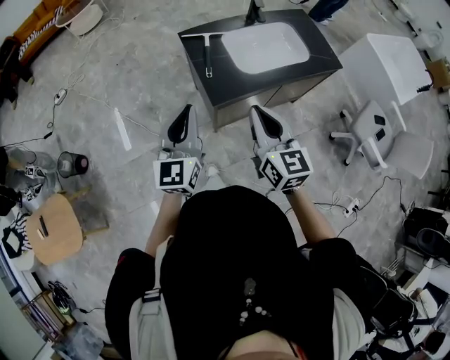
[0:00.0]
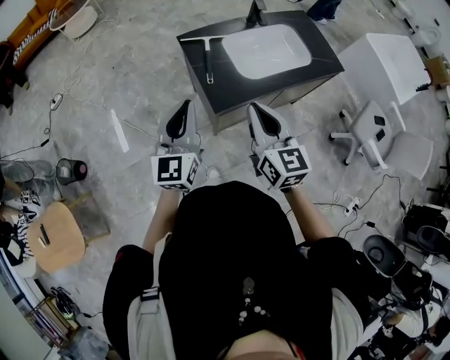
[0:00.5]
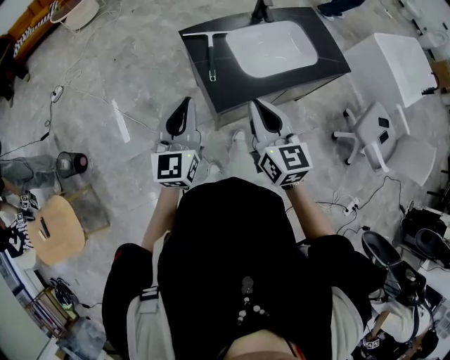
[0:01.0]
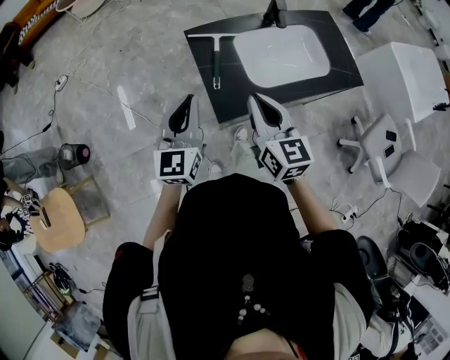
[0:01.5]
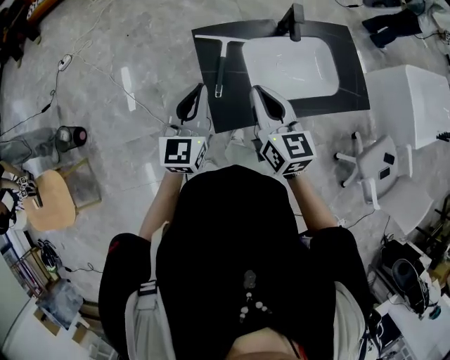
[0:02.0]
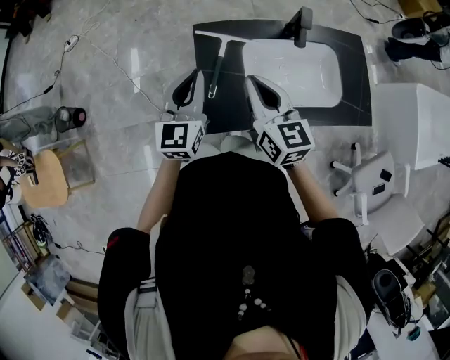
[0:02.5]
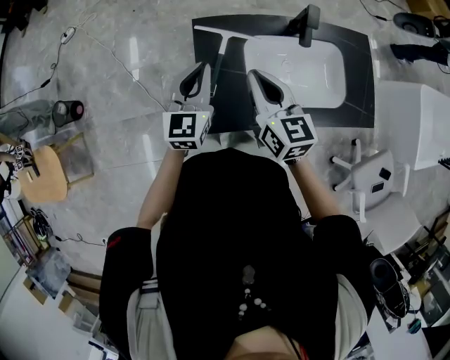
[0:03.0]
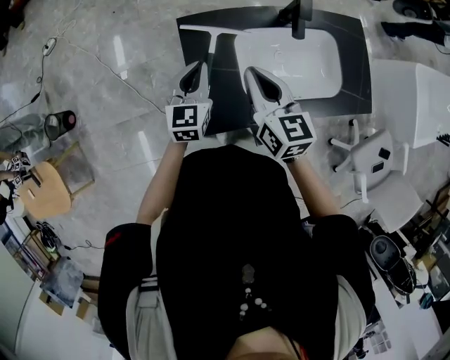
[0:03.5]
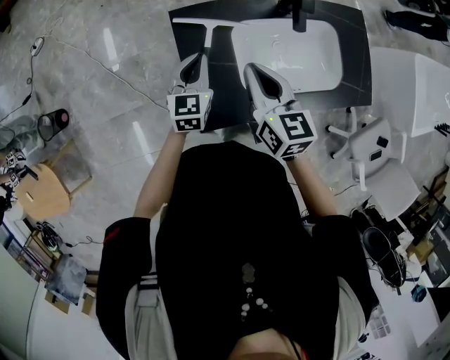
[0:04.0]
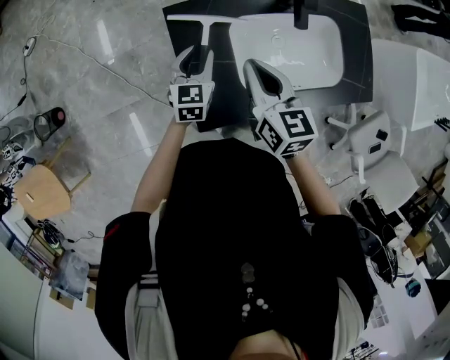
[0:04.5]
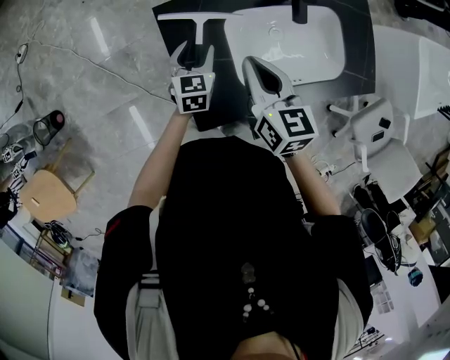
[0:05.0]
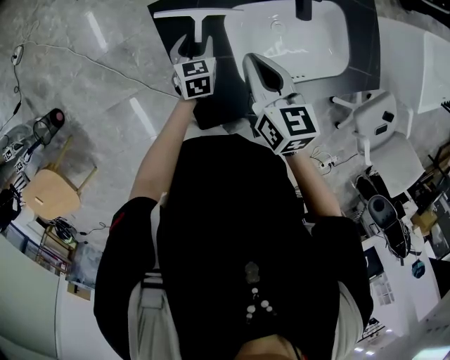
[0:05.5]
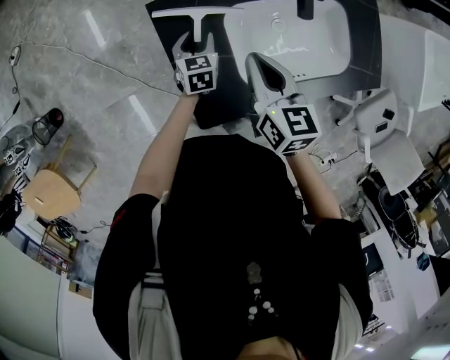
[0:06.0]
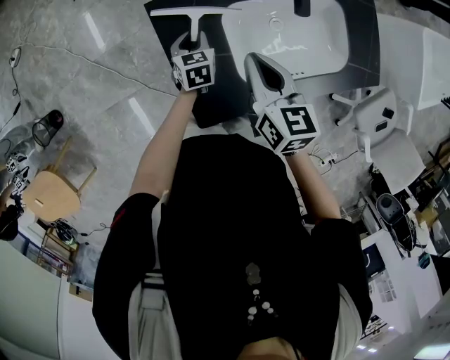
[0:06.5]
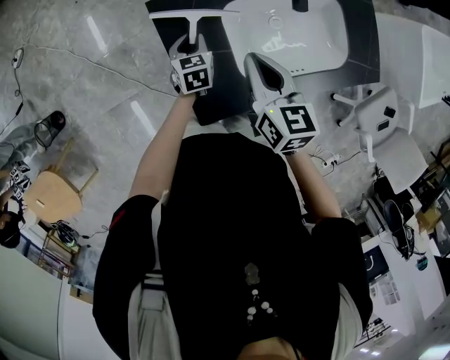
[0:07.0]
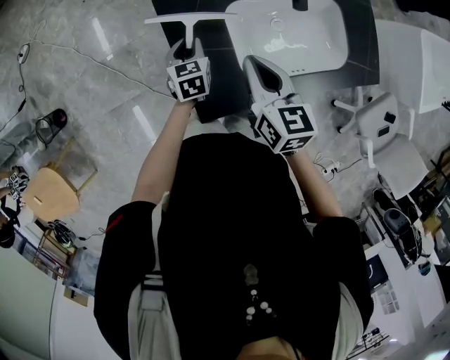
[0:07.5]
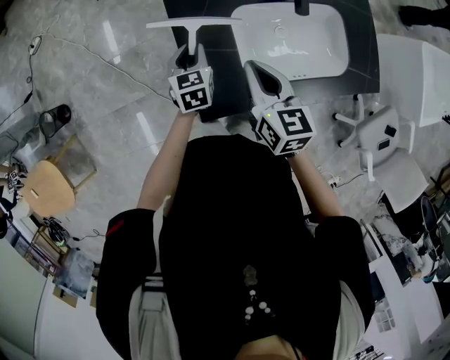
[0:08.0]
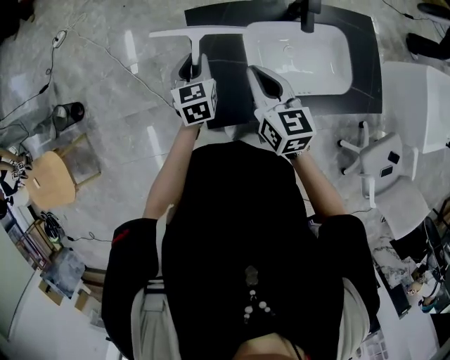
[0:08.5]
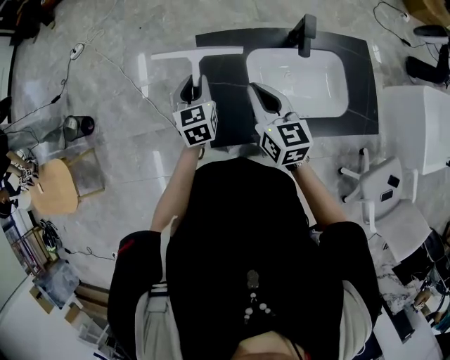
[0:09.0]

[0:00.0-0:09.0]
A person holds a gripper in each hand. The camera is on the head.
0:00.0 to 0:02.0: Both grippers move forward, approximately 25 cm.
0:02.0 to 0:04.5: The right gripper heads forward and downward, covering approximately 15 cm; the left gripper moves downward and forward, approximately 25 cm, rotates roughly 30 degrees, and opens up.
0:04.5 to 0:07.0: The left gripper shifts approximately 10 cm downward.
0:07.0 to 0:09.0: The left gripper moves upward, about 20 cm, and rotates roughly 30 degrees; the right gripper shifts about 5 cm upward, and rotates approximately 20 degrees.

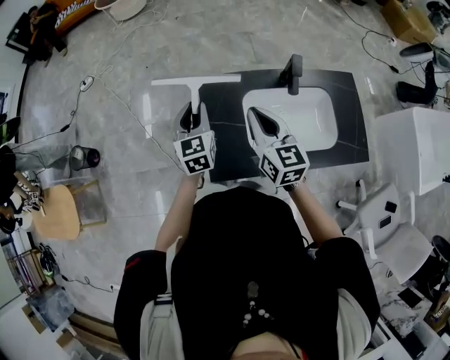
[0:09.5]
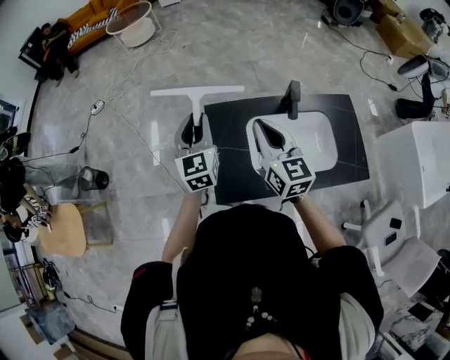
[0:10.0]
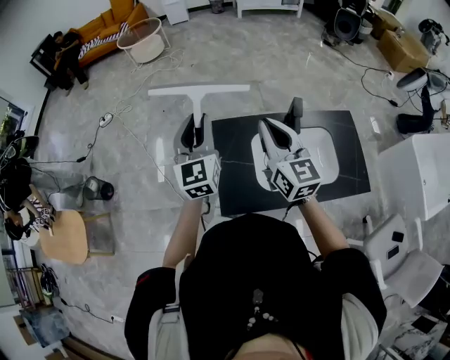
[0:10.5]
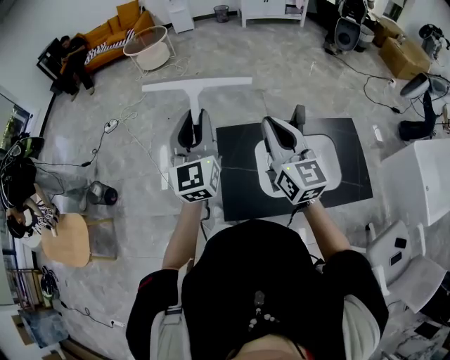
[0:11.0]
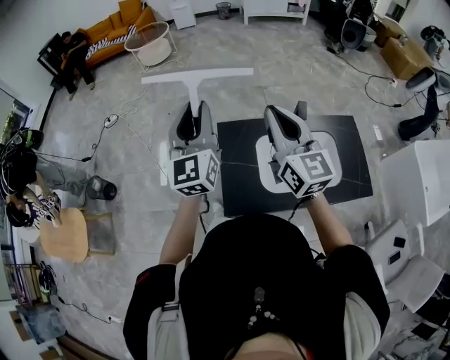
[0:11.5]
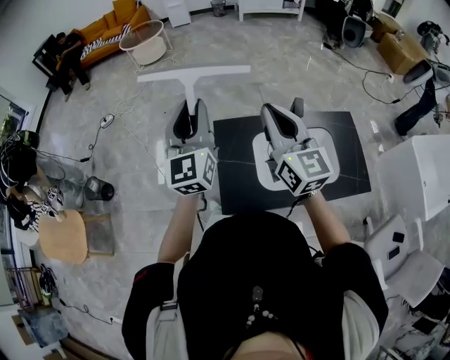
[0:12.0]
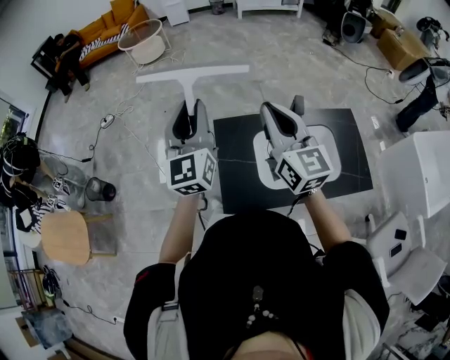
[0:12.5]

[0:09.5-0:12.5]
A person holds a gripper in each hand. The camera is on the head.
0:09.5 to 0:11.0: Both grippers move upward, roughly 20 cm. The left gripper turns by some 30 degrees.
0:11.0 to 0:12.5: The grippers make only small movements.

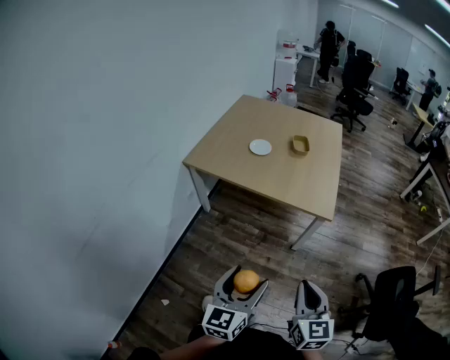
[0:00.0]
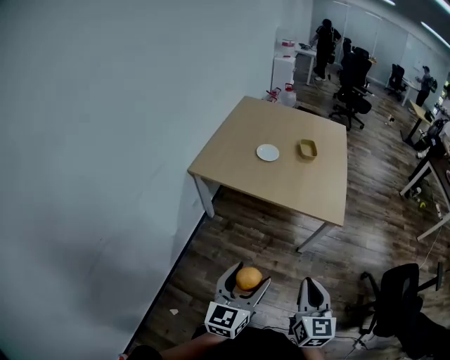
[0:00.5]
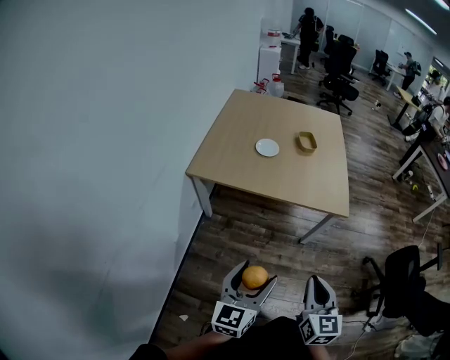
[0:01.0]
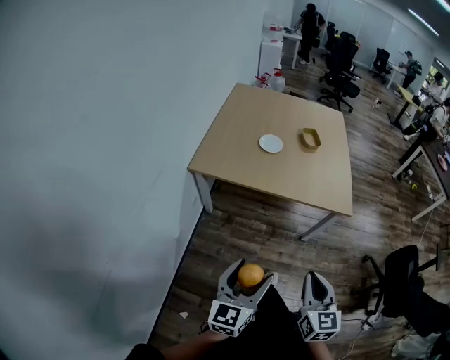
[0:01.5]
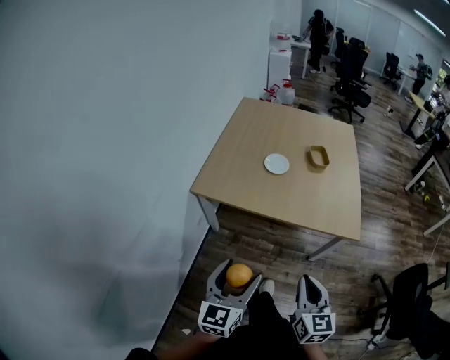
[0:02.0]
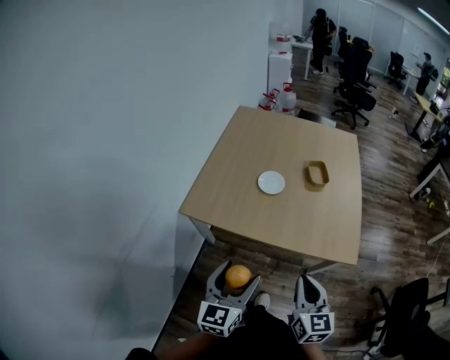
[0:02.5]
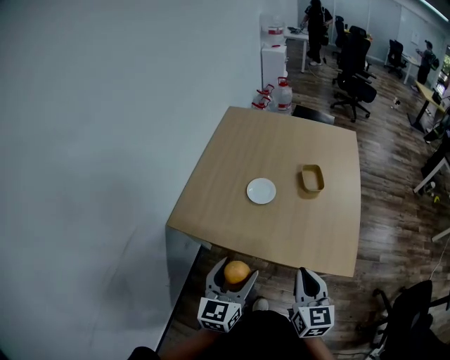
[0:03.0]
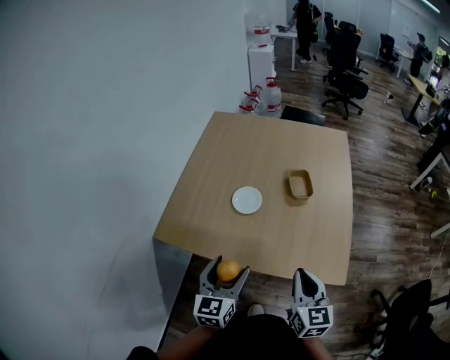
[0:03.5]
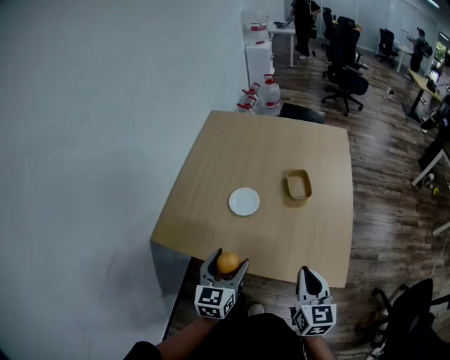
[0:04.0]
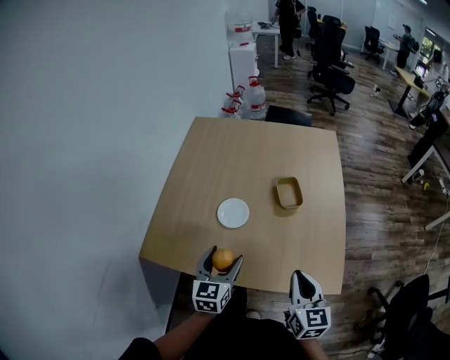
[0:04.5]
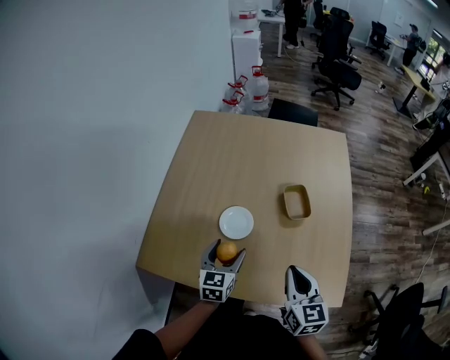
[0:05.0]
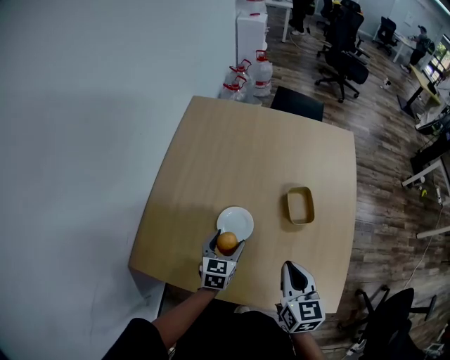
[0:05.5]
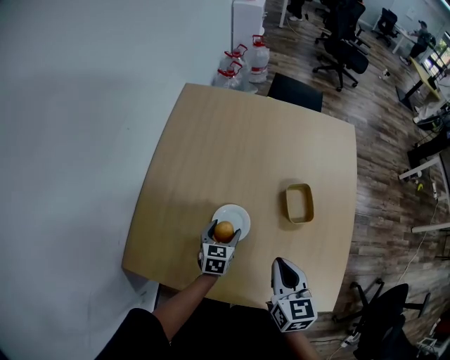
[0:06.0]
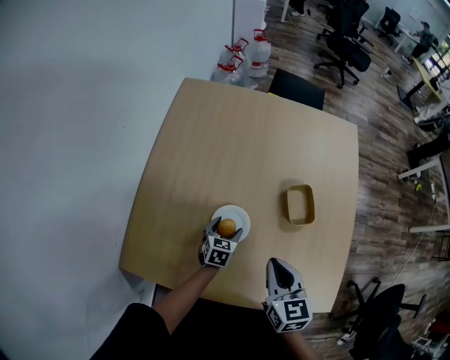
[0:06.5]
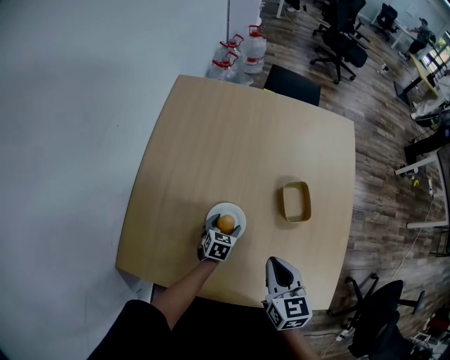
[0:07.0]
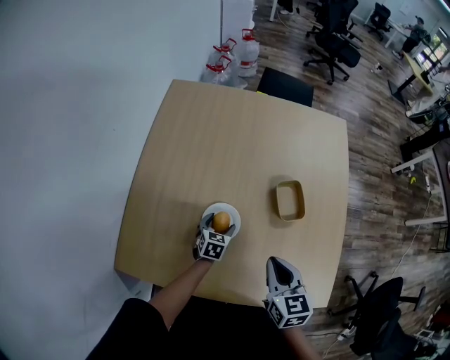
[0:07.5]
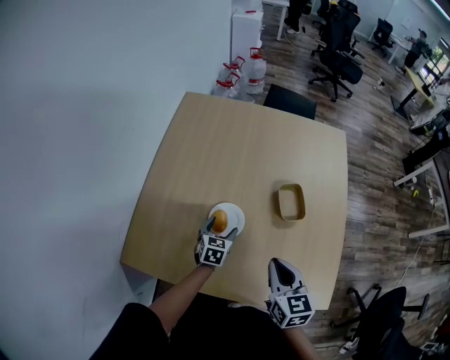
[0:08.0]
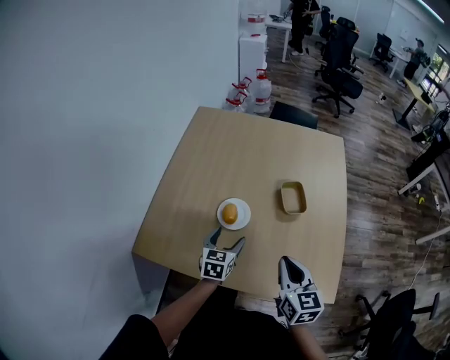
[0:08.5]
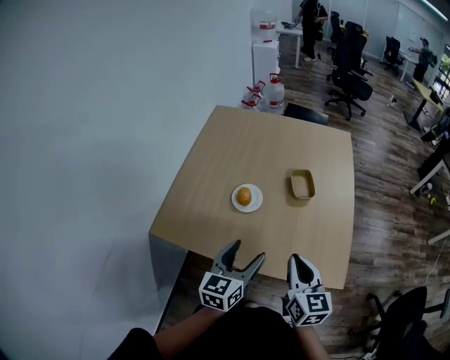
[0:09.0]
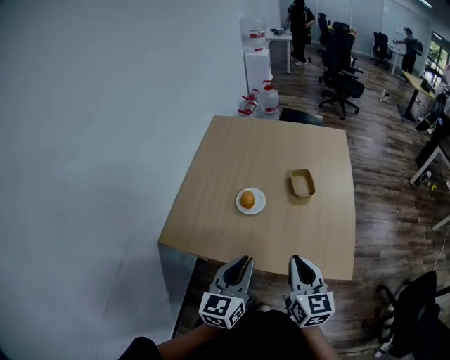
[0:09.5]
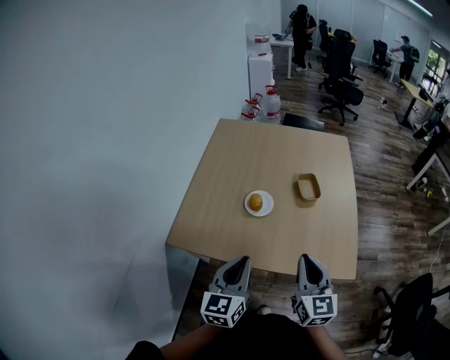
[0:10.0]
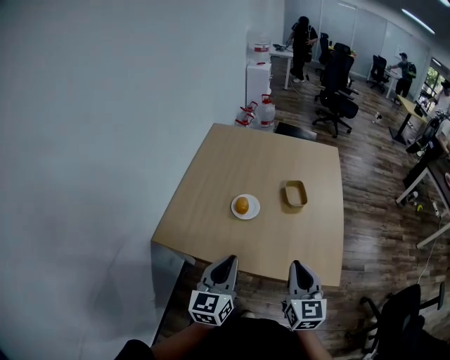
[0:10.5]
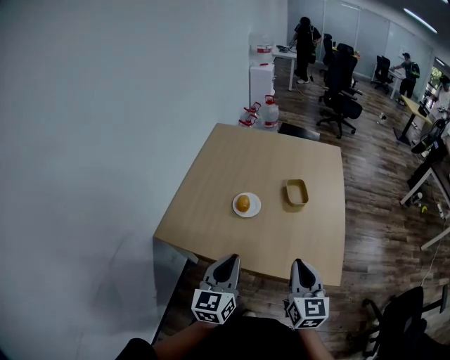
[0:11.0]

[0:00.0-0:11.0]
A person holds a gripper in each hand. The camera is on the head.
0:00.0 to 0:02.0: Both grippers move to the left and forward, about 25 cm.
0:02.0 to 0:03.5: The left gripper shifts roughly 30 cm forward. Meanwhile the right gripper heads forward and to the right, covering roughly 30 cm.
0:03.5 to 0:05.5: The right gripper goes some 20 cm forward; the left gripper goes roughly 30 cm forward and downward.
0:05.5 to 0:07.5: The left gripper goes roughly 15 cm downward and forward.
0:07.5 to 0:09.0: The right gripper heads backward and upward, covering approximately 20 cm. The left gripper goes approximately 40 cm upward and backward, and points its fingers approximately 30 degrees further upward.
0:09.0 to 0:11.0: The grippers both shift backward by approximately 5 cm. The left gripper closes up.

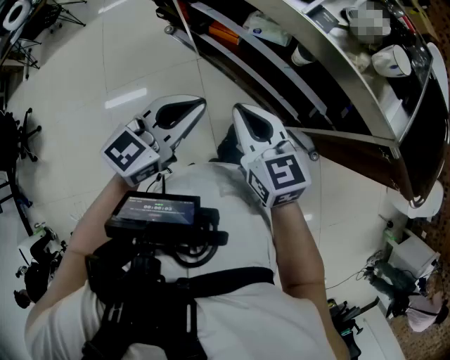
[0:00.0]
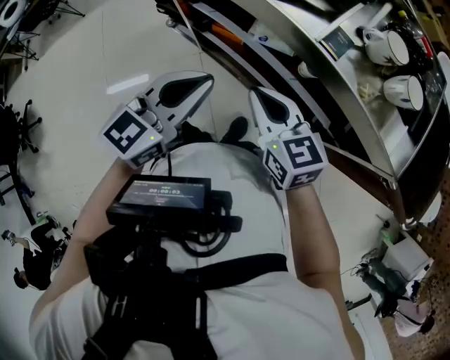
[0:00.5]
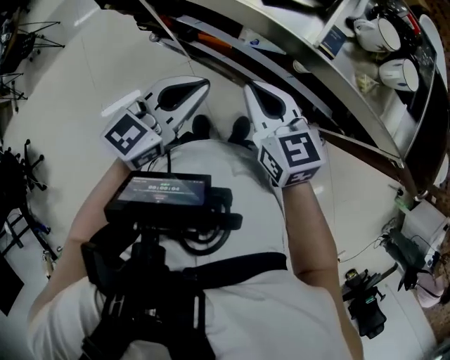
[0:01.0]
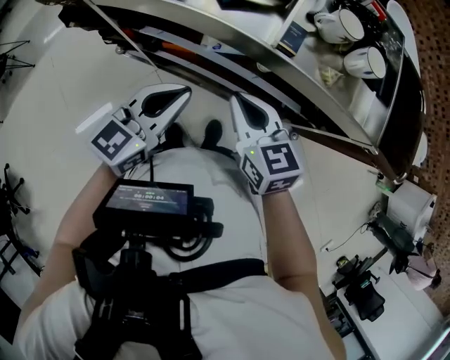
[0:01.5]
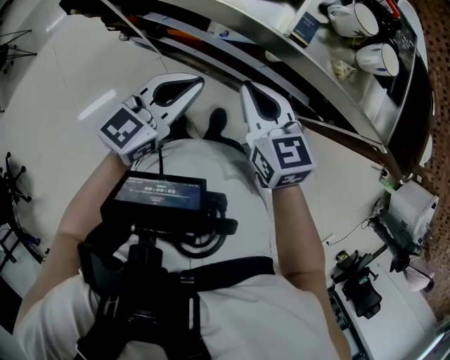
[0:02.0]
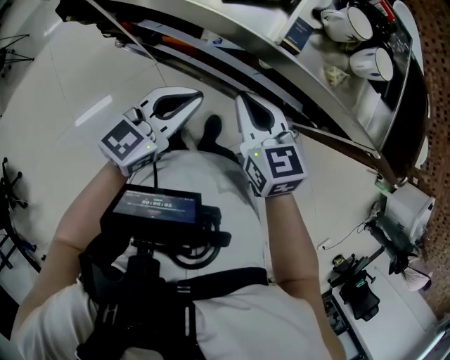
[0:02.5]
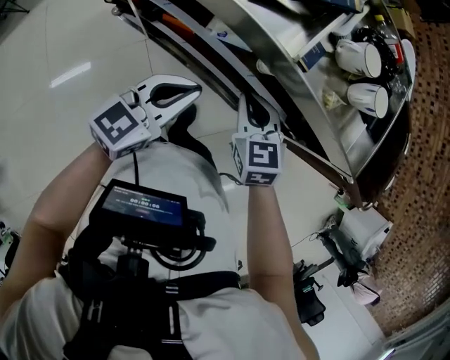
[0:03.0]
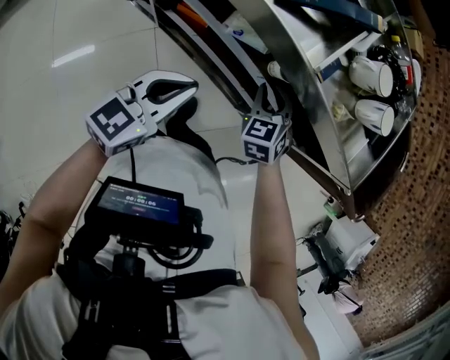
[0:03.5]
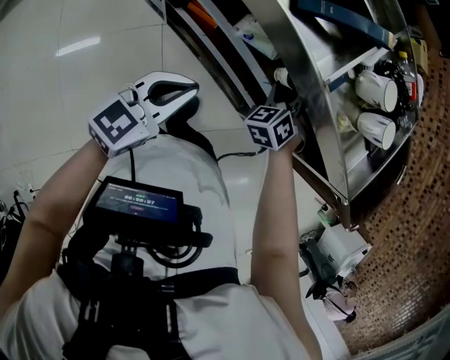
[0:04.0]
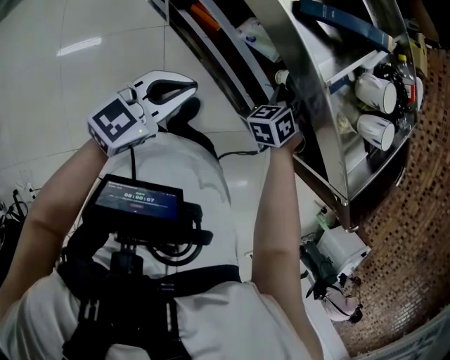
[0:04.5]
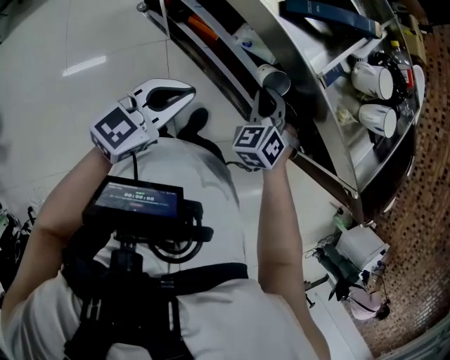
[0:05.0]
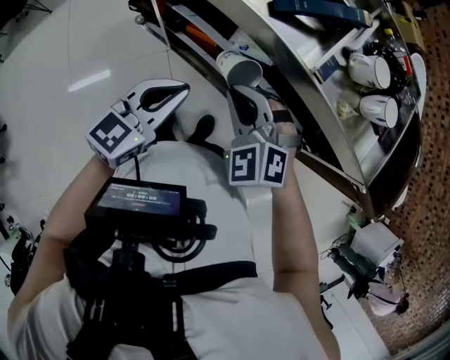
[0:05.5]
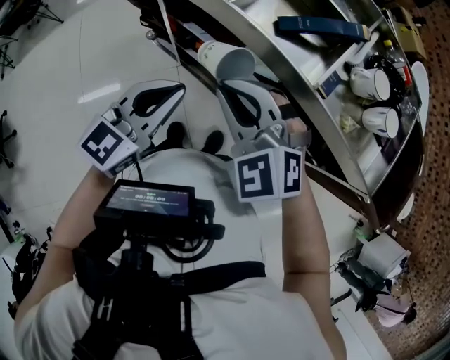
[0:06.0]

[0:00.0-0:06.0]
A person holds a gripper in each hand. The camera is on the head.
0:00.0 to 0:02.0: Both grippers move forward, approximately 15 cm.
0:02.0 to 0:04.0: The right gripper moves downward, forward and to the right, approximately 20 cm, twists some 50 degrees counterclockwise, seen from behind, and opens its fingers. Meanwhile the left gripper shifts by some 5 cm.
0:04.0 to 0:06.0: The left gripper is displaced upward by about 10 cm. The right gripper shifts by about 30 cm, changes its angle by some 50 degrees, and closes up.
